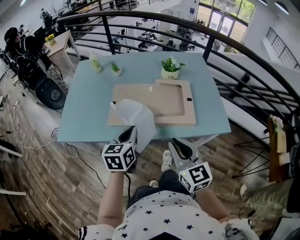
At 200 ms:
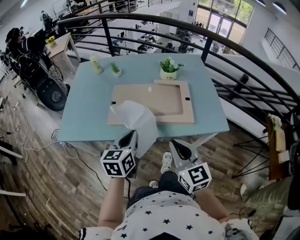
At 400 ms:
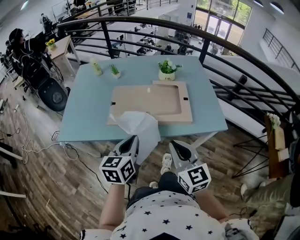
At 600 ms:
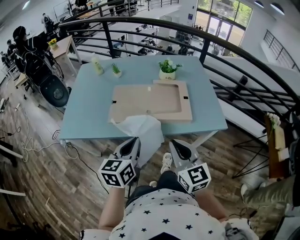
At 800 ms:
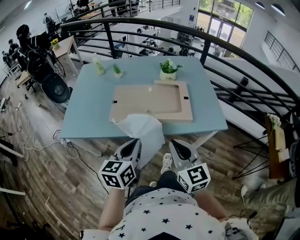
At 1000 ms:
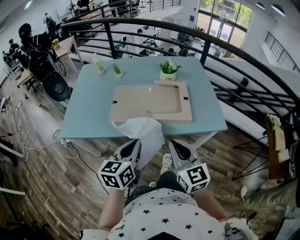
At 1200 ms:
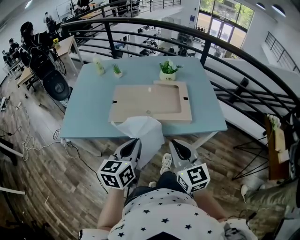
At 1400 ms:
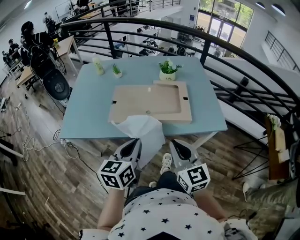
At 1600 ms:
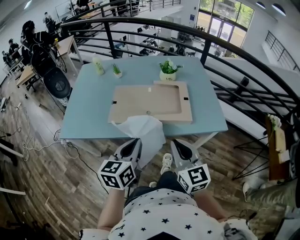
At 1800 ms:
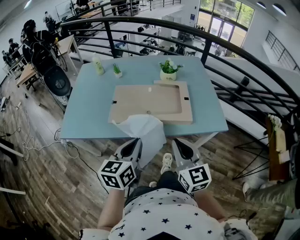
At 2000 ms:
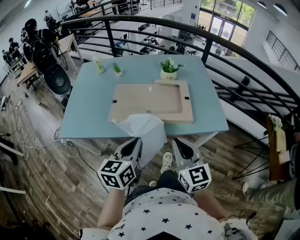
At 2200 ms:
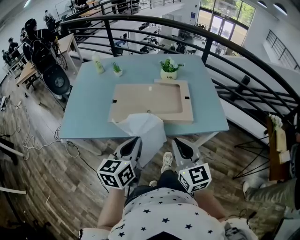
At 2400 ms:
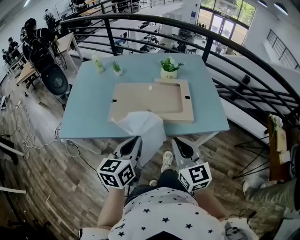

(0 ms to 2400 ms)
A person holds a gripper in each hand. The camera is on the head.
0 ms - 1200 ms: The left gripper goes roughly 10 cm backward.
1200 ms - 2400 ms: The grippers move only a little.

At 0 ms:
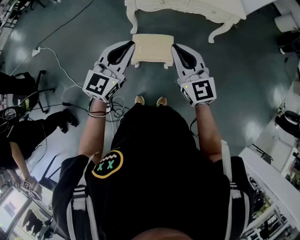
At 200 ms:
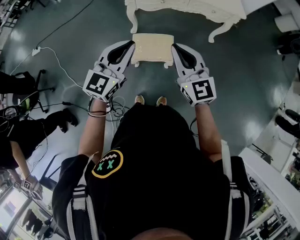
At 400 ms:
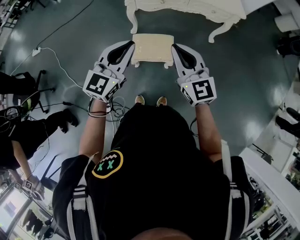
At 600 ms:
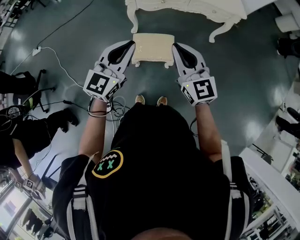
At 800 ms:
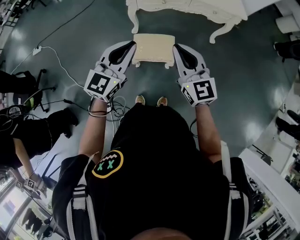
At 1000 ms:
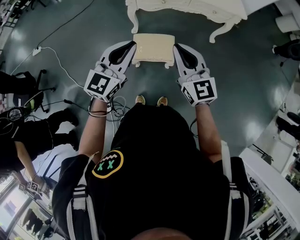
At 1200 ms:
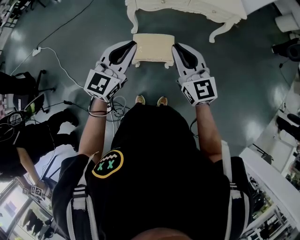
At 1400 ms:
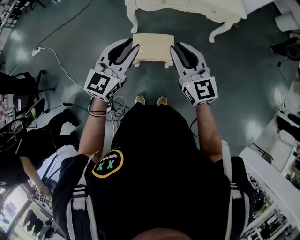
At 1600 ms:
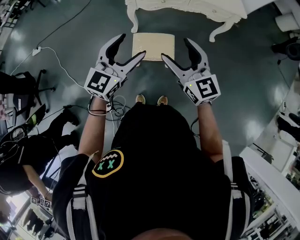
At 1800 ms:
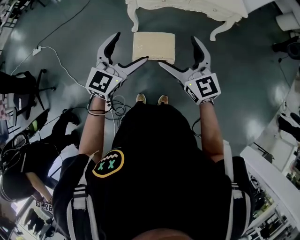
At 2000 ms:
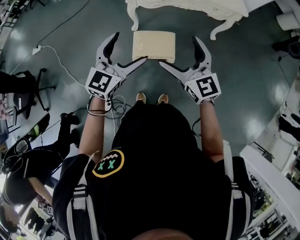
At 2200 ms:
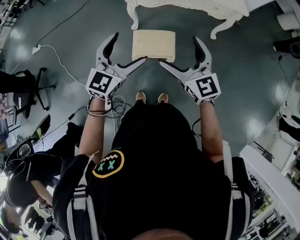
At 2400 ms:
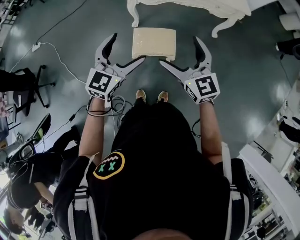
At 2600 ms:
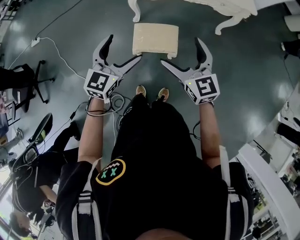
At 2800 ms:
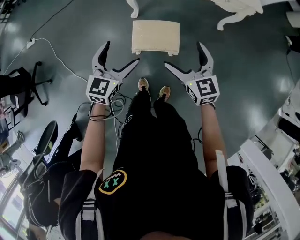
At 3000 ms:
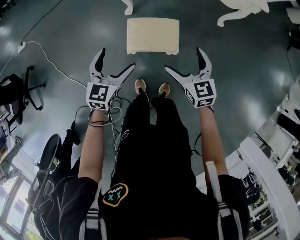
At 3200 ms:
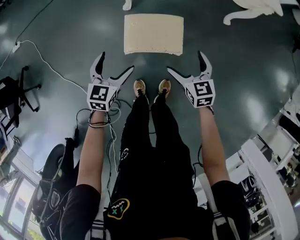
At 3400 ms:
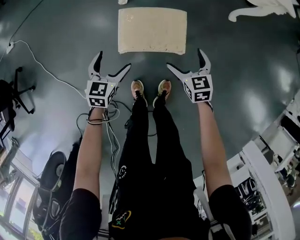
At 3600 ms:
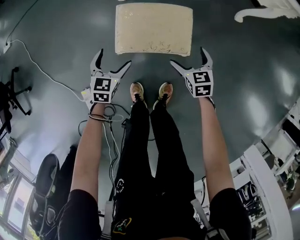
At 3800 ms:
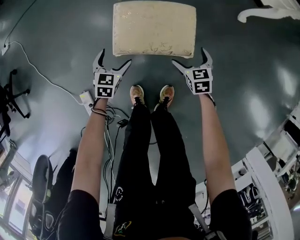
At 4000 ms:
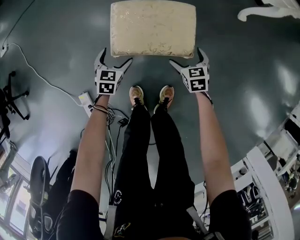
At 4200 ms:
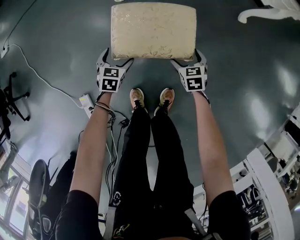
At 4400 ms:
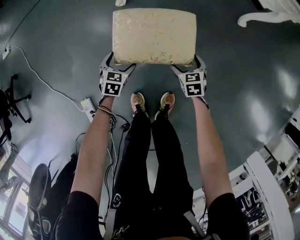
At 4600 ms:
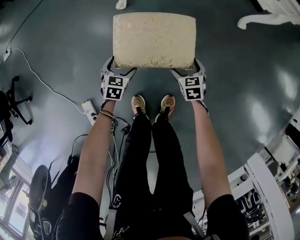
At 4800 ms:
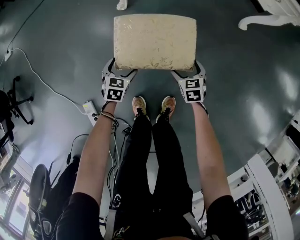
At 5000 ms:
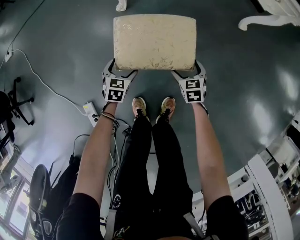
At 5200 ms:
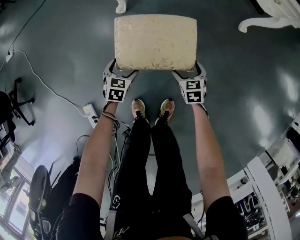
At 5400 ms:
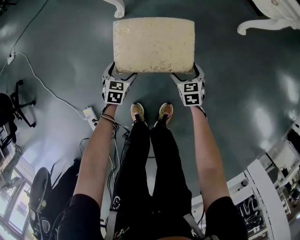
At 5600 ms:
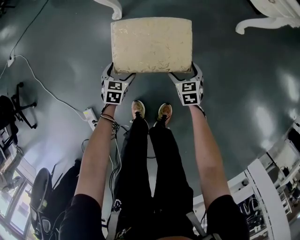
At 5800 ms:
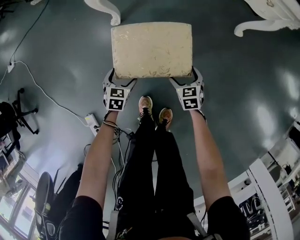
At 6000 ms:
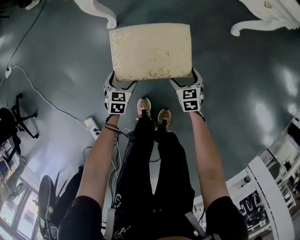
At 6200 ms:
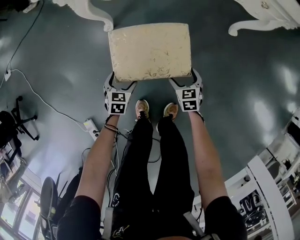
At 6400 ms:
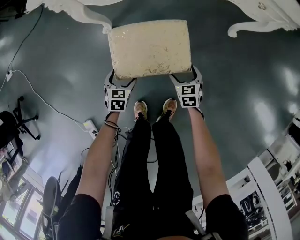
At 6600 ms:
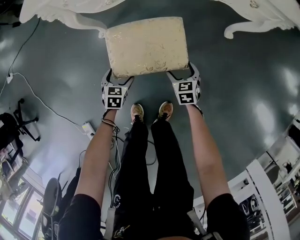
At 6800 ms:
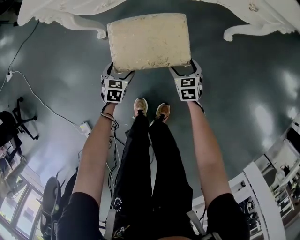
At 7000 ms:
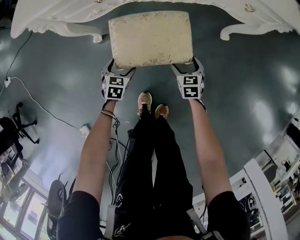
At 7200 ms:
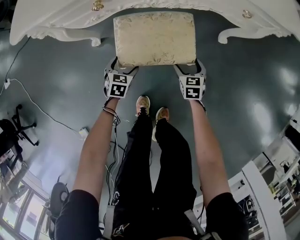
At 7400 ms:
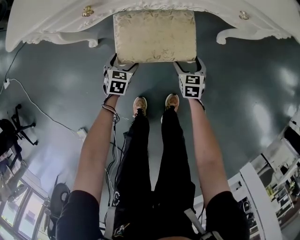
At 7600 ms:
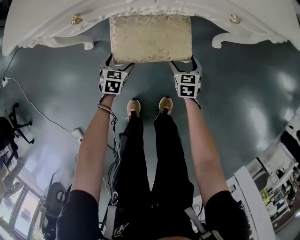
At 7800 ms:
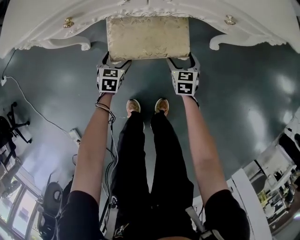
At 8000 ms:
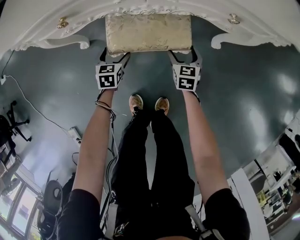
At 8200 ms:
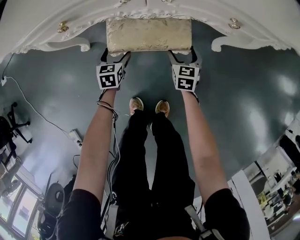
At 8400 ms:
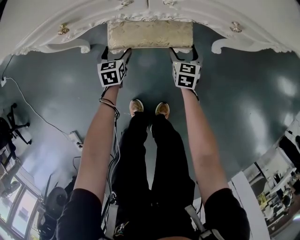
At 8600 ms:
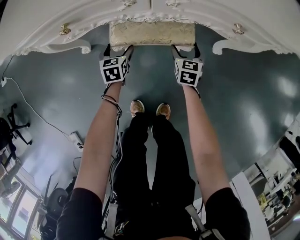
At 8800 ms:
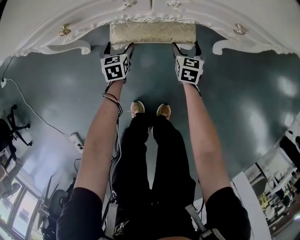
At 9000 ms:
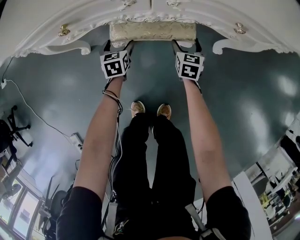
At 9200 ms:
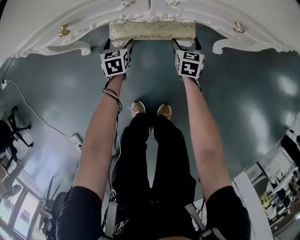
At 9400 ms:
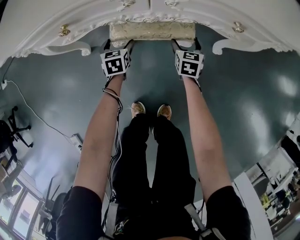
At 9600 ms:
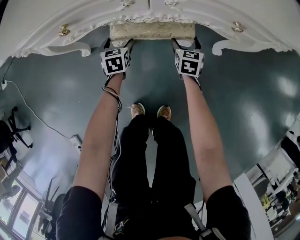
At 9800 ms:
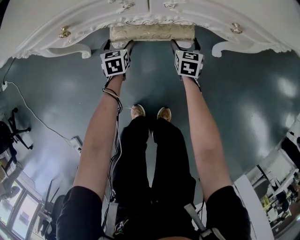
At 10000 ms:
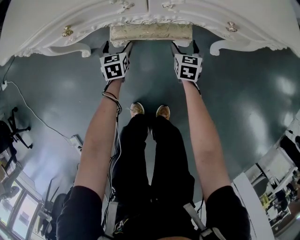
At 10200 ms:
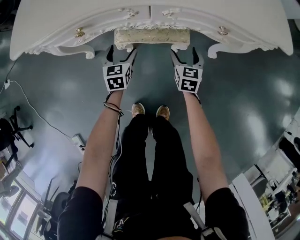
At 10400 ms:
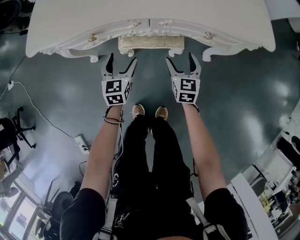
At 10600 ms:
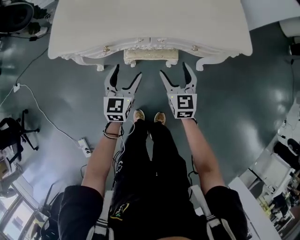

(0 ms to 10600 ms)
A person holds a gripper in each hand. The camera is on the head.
0 ms - 1600 ms: The right gripper opens its fingers; the left gripper opens.
1600 ms - 3000 ms: The grippers both shift downward by about 25 cm. The left gripper turns by approximately 20 degrees. The right gripper changes its angle by about 30 degrees.
3000 ms - 4600 ms: The grippers both shift downward by roughly 50 cm. The right gripper changes its angle by approximately 30 degrees, while the left gripper changes its angle by roughly 30 degrees.
4600 ms - 6000 ms: Both grippers travel together forward, approximately 5 cm.
6000 ms - 7600 ms: Both grippers move forward and to the right, approximately 30 cm.
7600 ms - 9000 ms: The grippers both shift forward by about 15 cm. The left gripper turns by about 20 degrees.
9000 ms - 10600 ms: Both grippers move upward, approximately 35 cm. The left gripper rotates roughly 30 degrees, while the right gripper changes its angle by about 20 degrees.

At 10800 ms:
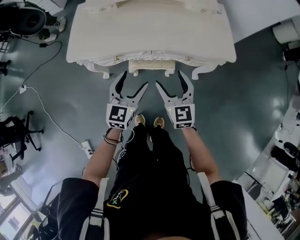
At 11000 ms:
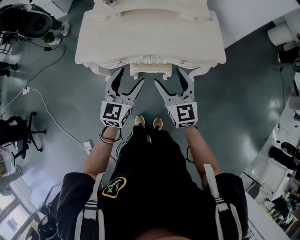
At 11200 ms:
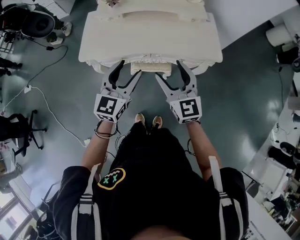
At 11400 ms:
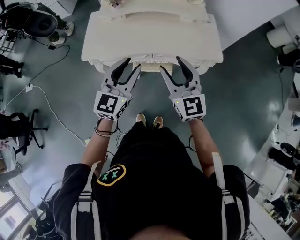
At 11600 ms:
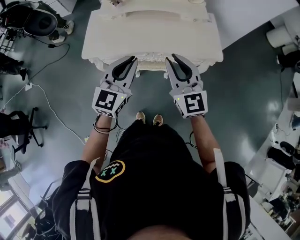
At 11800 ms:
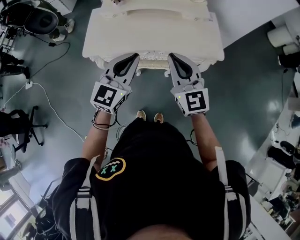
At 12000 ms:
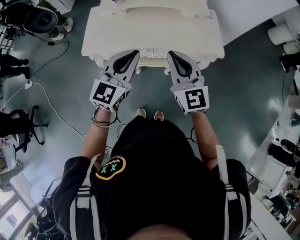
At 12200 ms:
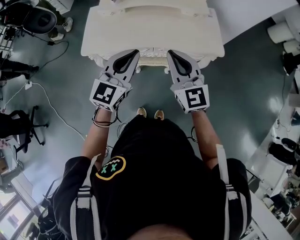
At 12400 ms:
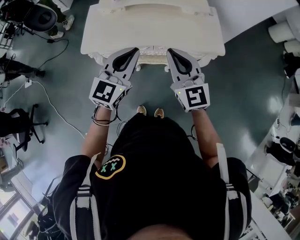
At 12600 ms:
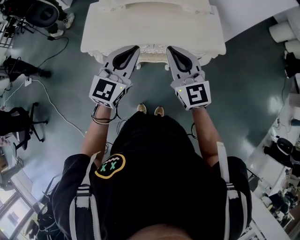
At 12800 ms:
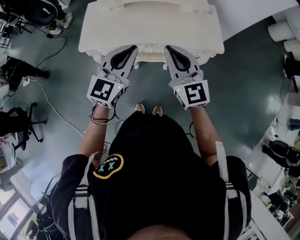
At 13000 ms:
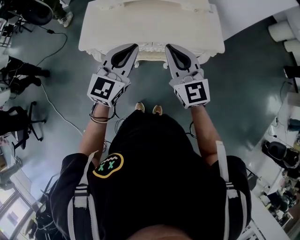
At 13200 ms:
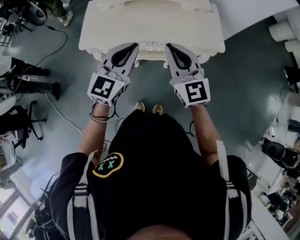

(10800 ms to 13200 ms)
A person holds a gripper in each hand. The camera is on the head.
10800 ms - 12000 ms: Both grippers move upward, roughly 25 cm. The left gripper closes. Meanwhile the right gripper closes up.
12000 ms - 13200 ms: Both grippers stay put.

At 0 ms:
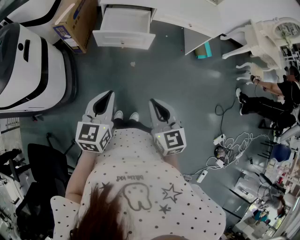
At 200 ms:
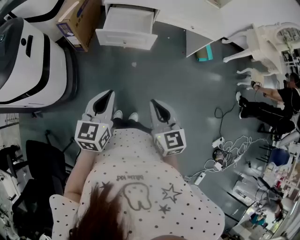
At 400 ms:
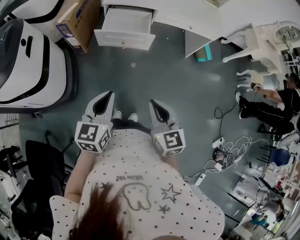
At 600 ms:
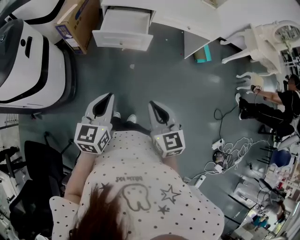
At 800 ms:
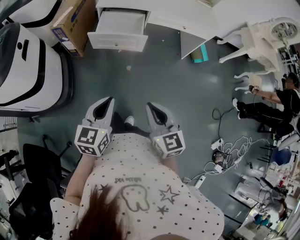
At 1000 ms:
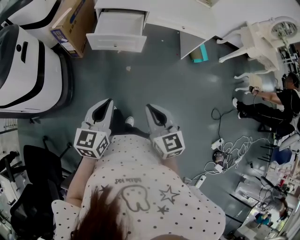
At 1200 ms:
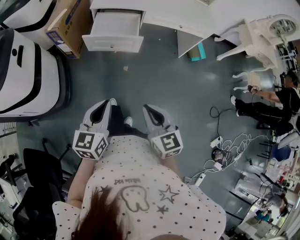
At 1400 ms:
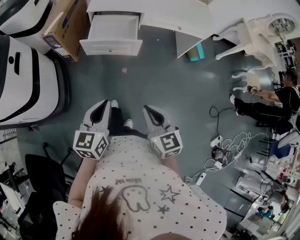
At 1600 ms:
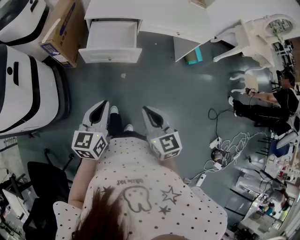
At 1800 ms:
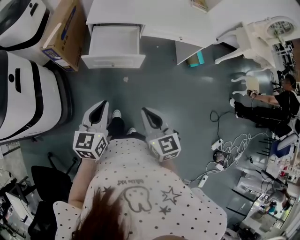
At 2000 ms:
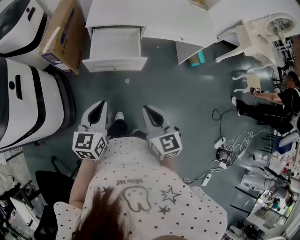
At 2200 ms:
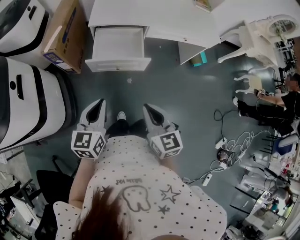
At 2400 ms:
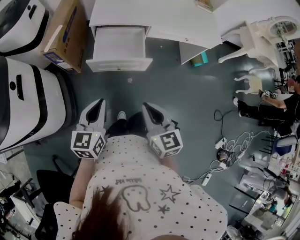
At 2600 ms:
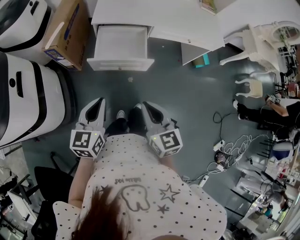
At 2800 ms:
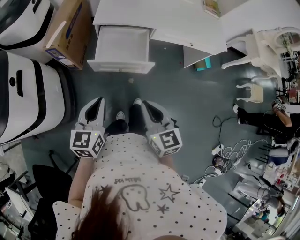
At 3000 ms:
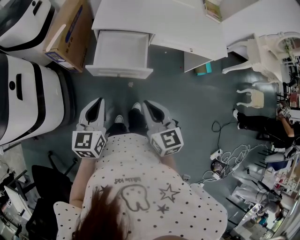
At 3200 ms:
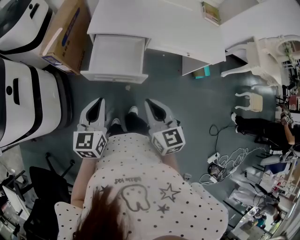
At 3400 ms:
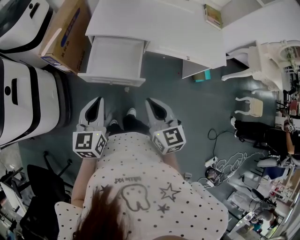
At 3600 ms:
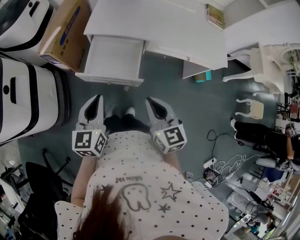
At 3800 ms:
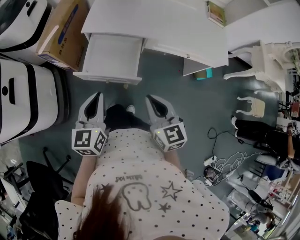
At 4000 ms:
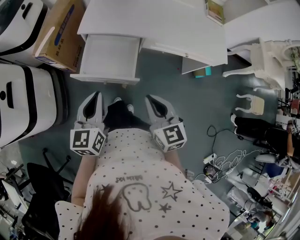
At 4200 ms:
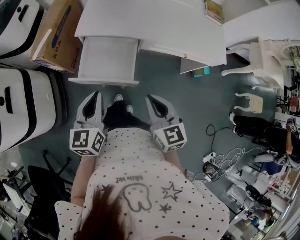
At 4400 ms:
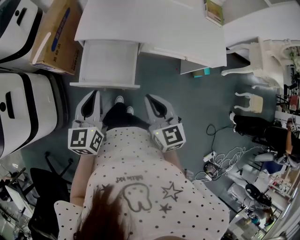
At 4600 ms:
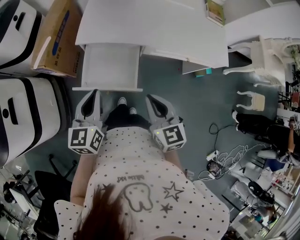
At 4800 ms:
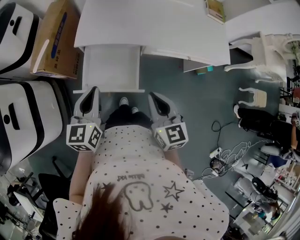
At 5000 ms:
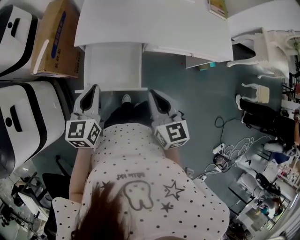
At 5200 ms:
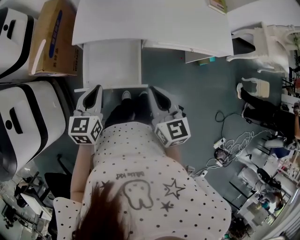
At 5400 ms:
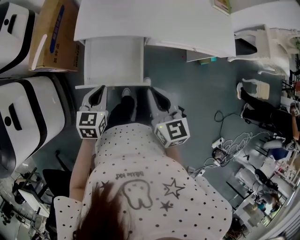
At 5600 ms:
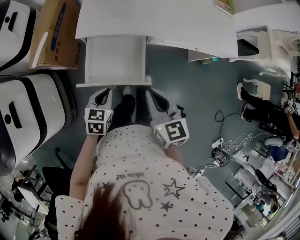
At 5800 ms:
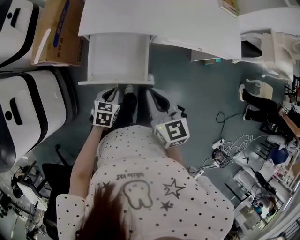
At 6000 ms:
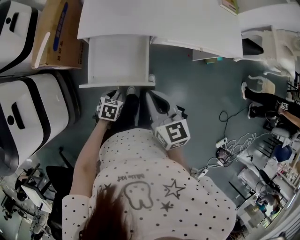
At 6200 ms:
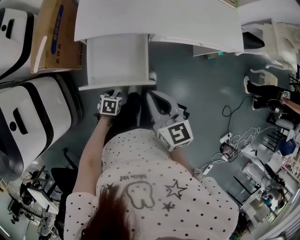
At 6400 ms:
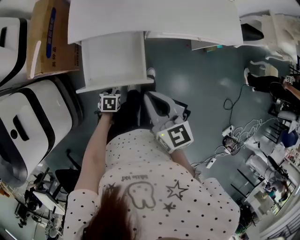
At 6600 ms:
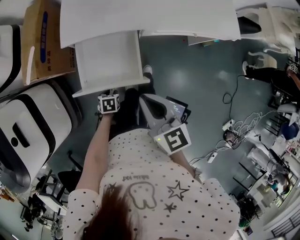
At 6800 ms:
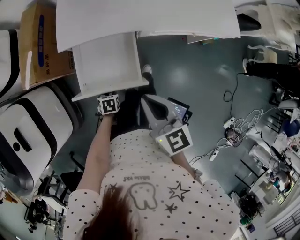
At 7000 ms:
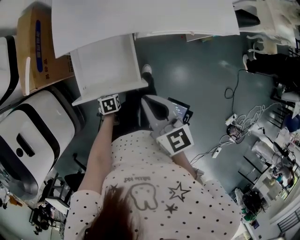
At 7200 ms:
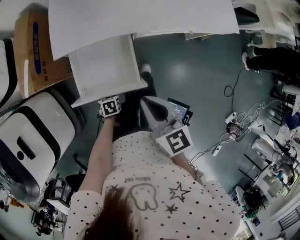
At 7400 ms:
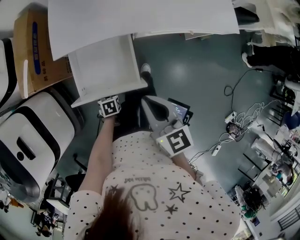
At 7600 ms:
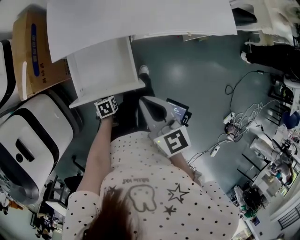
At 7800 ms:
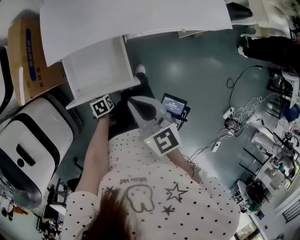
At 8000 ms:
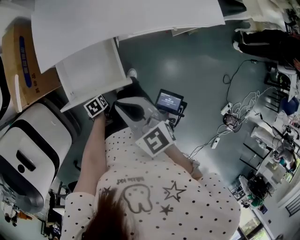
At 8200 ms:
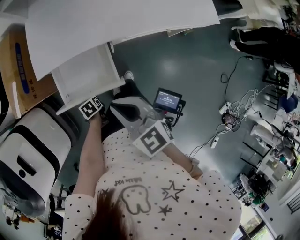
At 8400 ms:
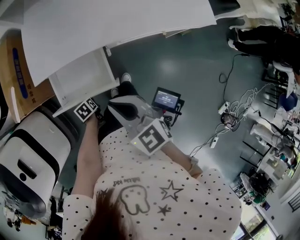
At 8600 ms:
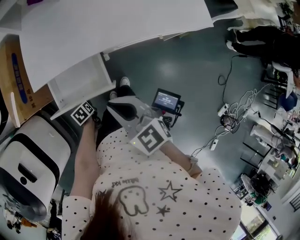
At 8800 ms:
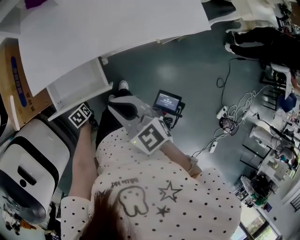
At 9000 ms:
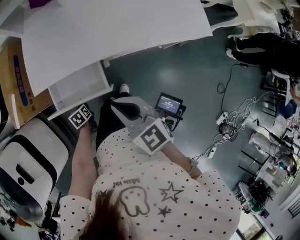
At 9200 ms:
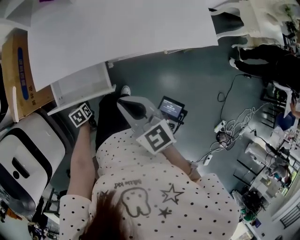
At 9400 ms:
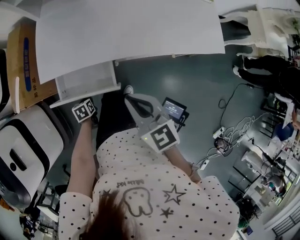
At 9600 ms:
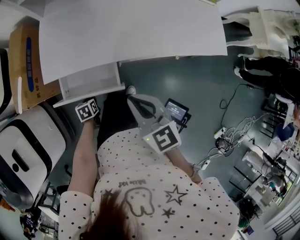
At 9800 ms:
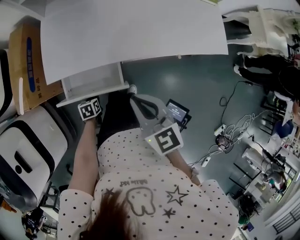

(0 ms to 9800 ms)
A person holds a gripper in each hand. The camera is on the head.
0 ms - 1400 ms: The grippers move only a little.
1400 ms - 2800 ms: The right gripper travels forward by approximately 15 cm. The left gripper shifts roughly 15 cm forward and to the left.
2800 ms - 4200 ms: Both grippers move forward and to the right, approximately 15 cm.
4200 ms - 5600 ms: The right gripper shifts some 5 cm forward; the left gripper goes about 15 cm downward, and swivels approximately 30 degrees.
5600 ms - 7000 ms: The left gripper travels downward by approximately 20 cm, rotates roughly 30 degrees, and opens up.
7000 ms - 8400 ms: The right gripper rotates approximately 20 degrees. The left gripper heads forward, covering approximately 5 cm.
8400 ms - 9800 ms: The grippers both shift forward by some 5 cm.
